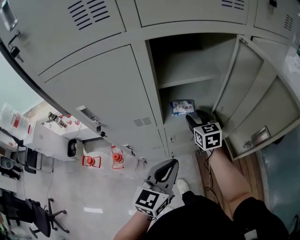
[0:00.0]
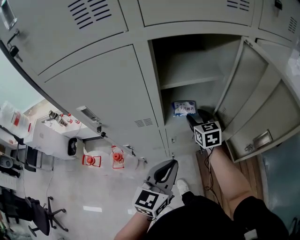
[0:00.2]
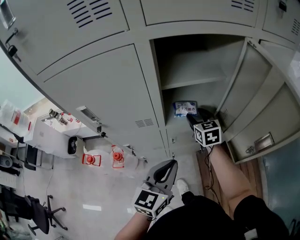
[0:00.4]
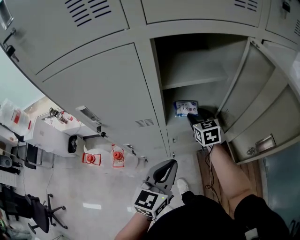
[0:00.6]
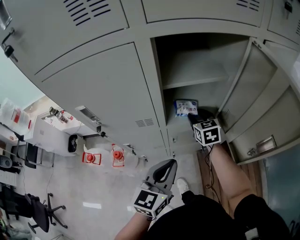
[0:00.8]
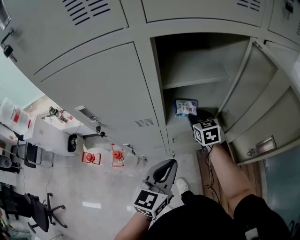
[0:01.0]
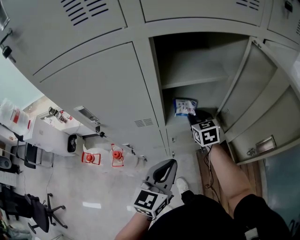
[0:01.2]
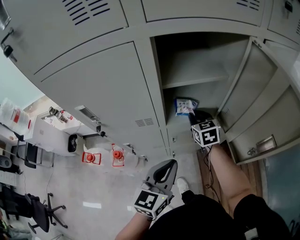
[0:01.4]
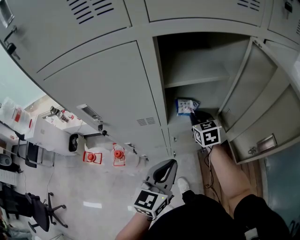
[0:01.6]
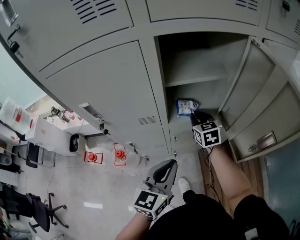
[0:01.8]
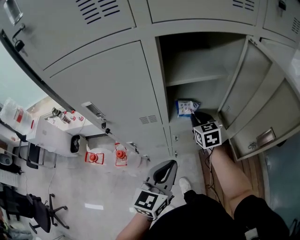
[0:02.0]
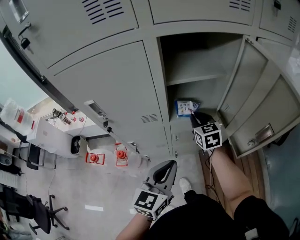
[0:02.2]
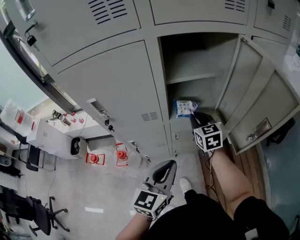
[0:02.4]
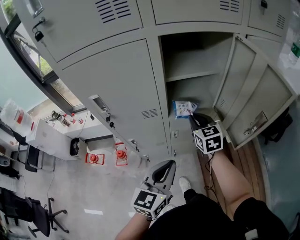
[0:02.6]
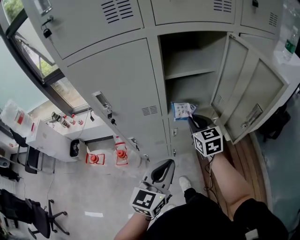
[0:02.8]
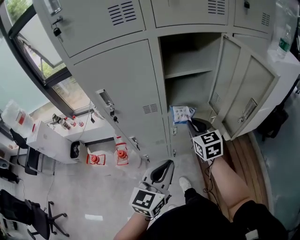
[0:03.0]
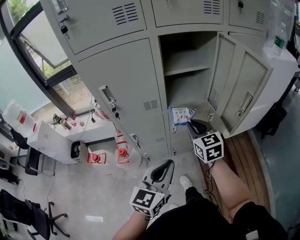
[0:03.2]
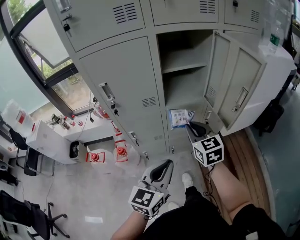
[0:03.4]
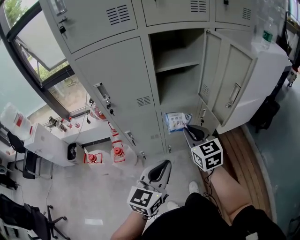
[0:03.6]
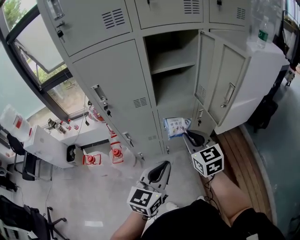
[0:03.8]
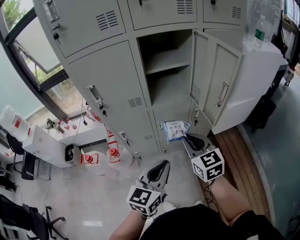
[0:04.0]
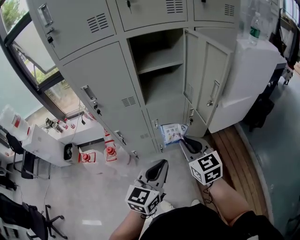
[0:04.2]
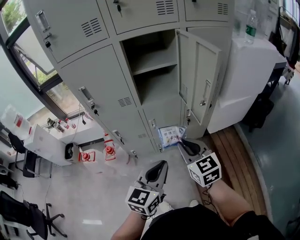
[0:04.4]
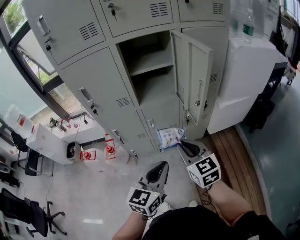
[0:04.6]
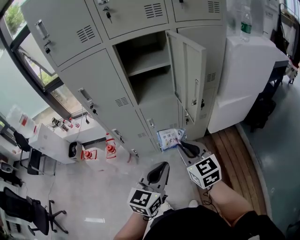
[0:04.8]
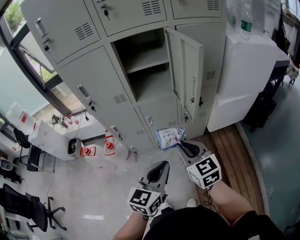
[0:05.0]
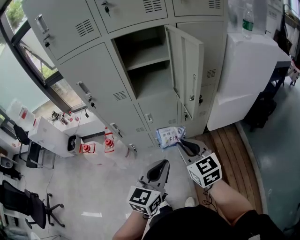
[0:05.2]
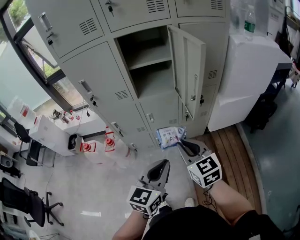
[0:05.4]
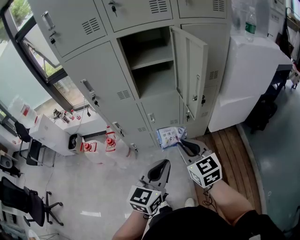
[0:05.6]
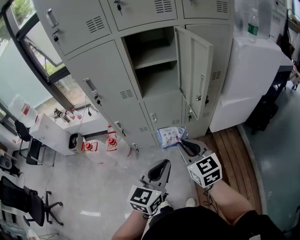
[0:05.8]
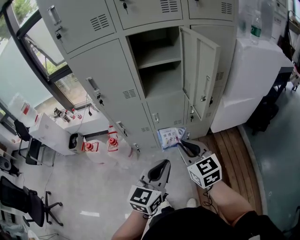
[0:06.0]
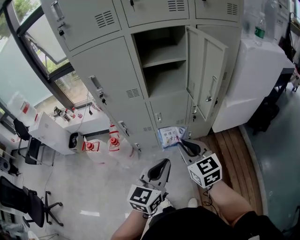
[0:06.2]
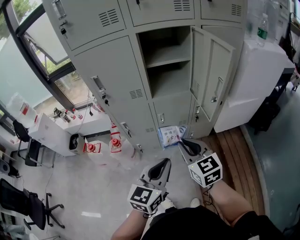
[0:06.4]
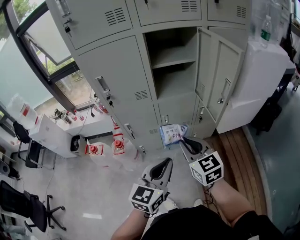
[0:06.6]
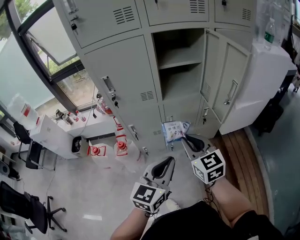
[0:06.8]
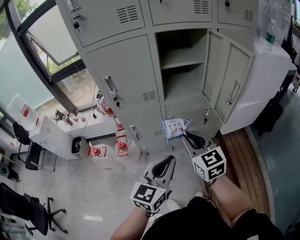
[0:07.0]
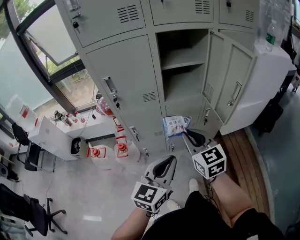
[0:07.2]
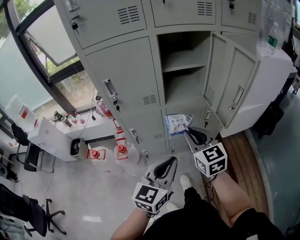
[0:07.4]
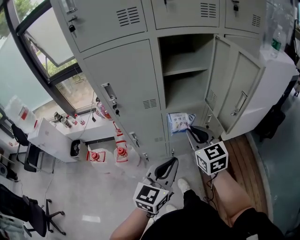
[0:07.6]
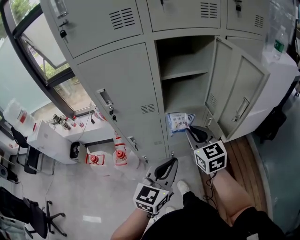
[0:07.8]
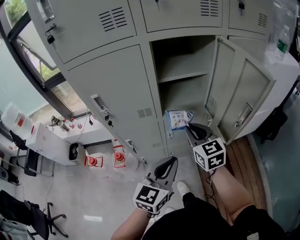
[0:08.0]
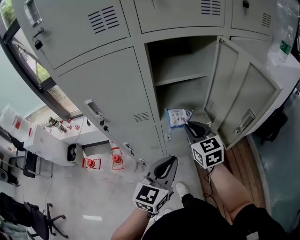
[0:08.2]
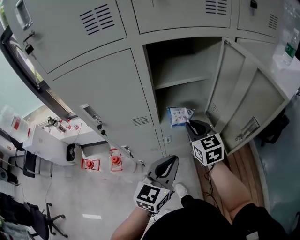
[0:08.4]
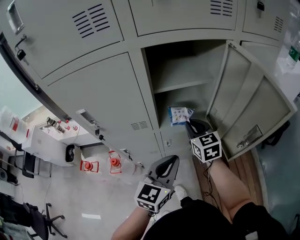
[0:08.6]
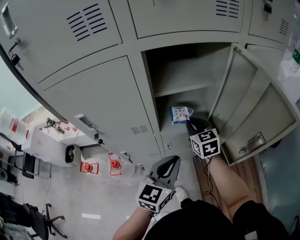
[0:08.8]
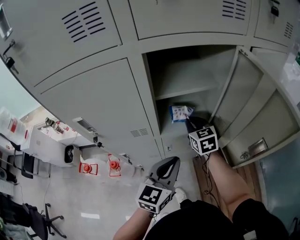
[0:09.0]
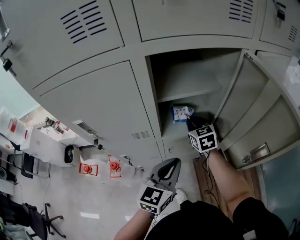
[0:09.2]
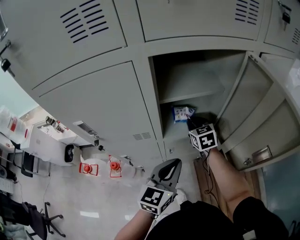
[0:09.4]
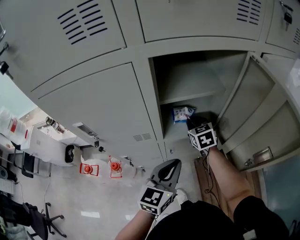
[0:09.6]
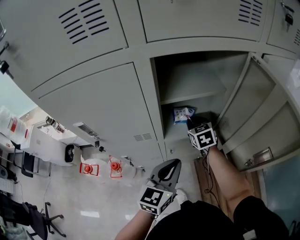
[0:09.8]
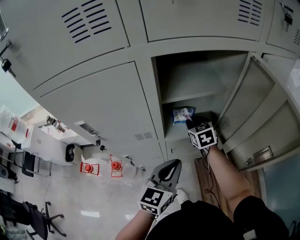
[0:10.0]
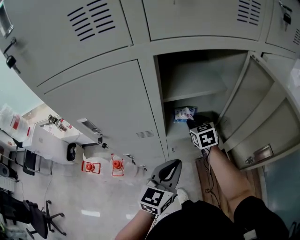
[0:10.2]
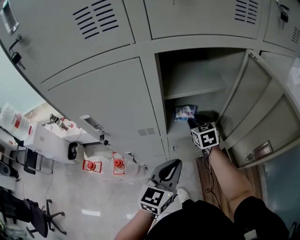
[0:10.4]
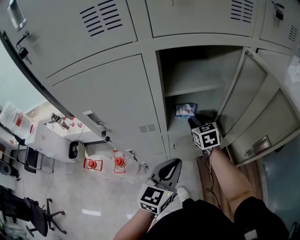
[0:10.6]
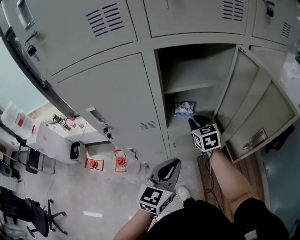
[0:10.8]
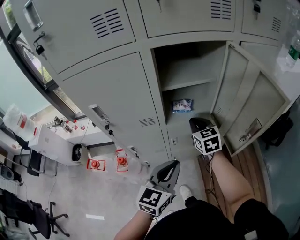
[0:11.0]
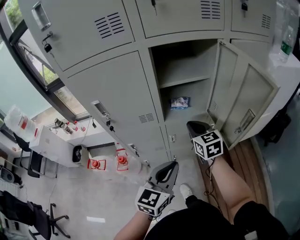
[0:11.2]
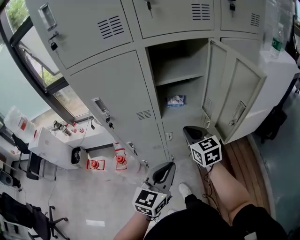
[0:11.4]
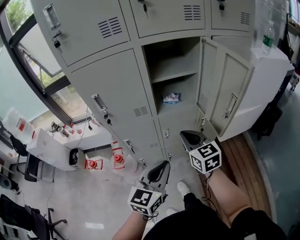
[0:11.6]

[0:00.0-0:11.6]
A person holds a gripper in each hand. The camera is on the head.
0:00.0 to 0:01.4: The right gripper closes its fingers.
0:01.4 to 0:02.8: The right gripper moves backward and upward, roughly 15 cm. Meanwhile the left gripper moves backward, some 10 cm.
0:02.8 to 0:04.4: The right gripper goes some 25 cm backward and to the right; the left gripper heads backward and to the right, covering approximately 15 cm.
0:04.4 to 0:05.8: The left gripper shifts by some 5 cm.
0:05.8 to 0:07.2: The grippers both shift to the left and forward by roughly 15 cm.
0:07.2 to 0:08.8: Both grippers move forward, some 25 cm.
0:08.8 to 0:10.2: The right gripper shifts approximately 5 cm forward, and opens its fingers.
0:10.2 to 0:11.6: The right gripper is displaced backward by about 30 cm, and closes; the left gripper is displaced backward by about 20 cm.

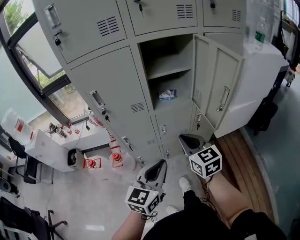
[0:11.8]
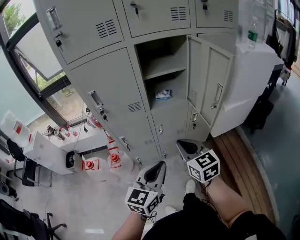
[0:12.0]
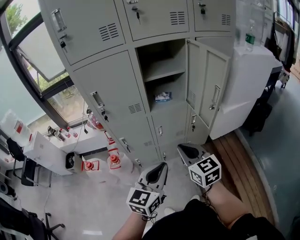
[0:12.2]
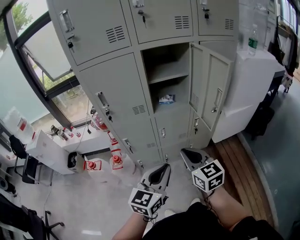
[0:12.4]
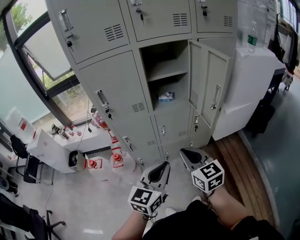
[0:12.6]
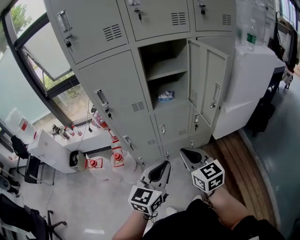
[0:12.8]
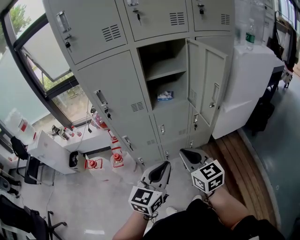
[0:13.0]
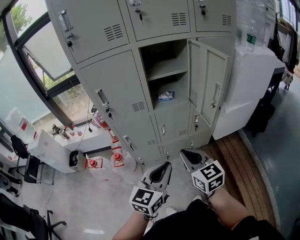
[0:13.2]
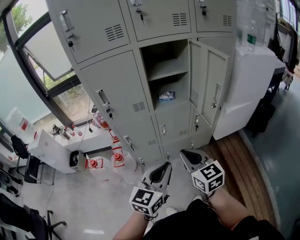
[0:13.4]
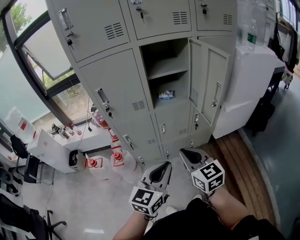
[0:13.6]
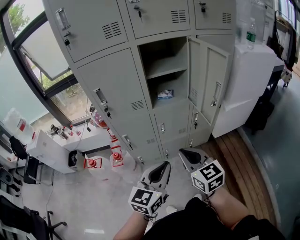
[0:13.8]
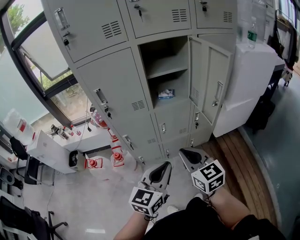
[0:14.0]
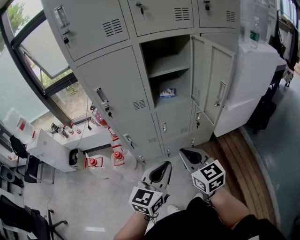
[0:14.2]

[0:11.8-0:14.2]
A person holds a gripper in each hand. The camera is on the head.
0:11.8 to 0:13.0: The right gripper heads backward, covering some 10 cm, while the left gripper shifts roughly 5 cm backward.
0:13.0 to 0:14.2: The grippers move only a little.

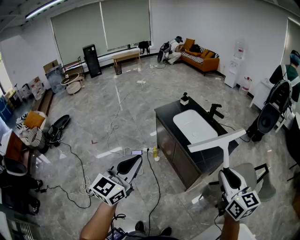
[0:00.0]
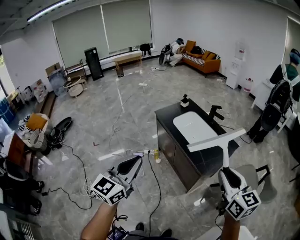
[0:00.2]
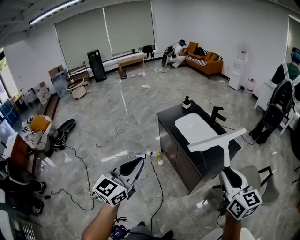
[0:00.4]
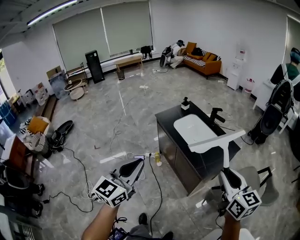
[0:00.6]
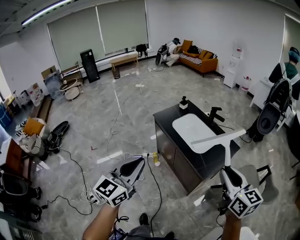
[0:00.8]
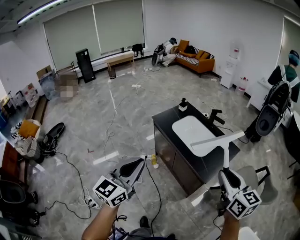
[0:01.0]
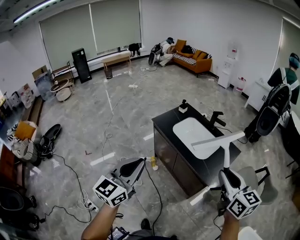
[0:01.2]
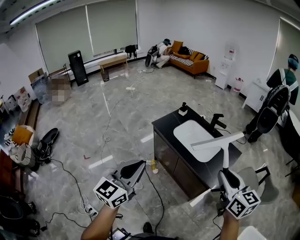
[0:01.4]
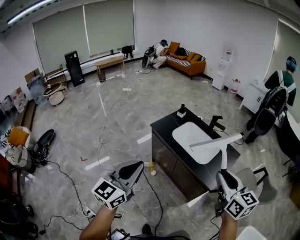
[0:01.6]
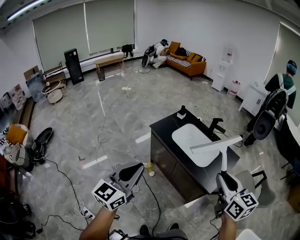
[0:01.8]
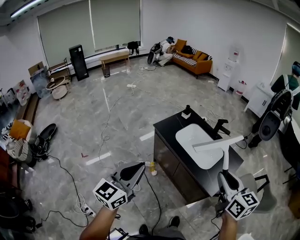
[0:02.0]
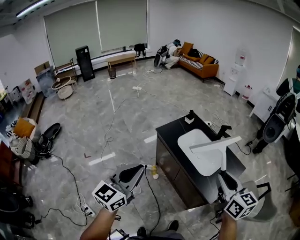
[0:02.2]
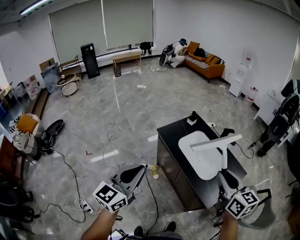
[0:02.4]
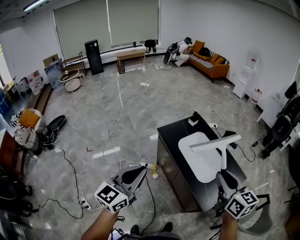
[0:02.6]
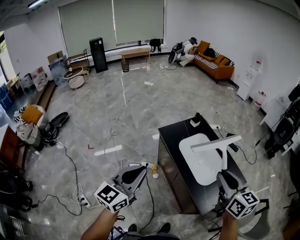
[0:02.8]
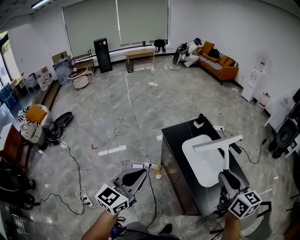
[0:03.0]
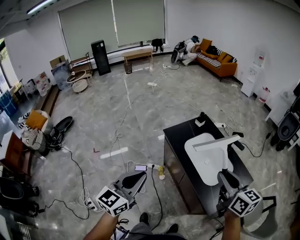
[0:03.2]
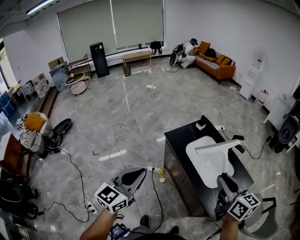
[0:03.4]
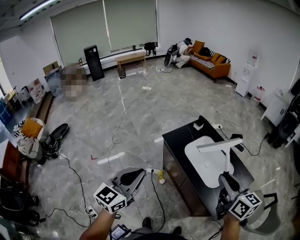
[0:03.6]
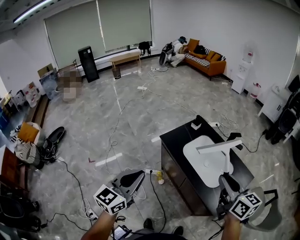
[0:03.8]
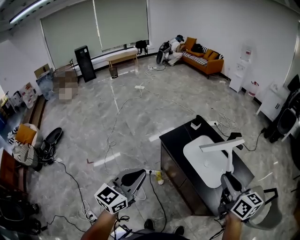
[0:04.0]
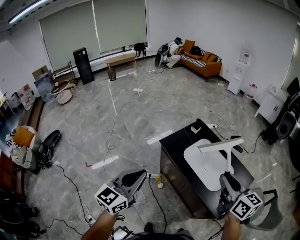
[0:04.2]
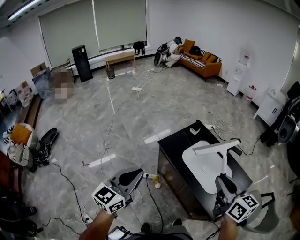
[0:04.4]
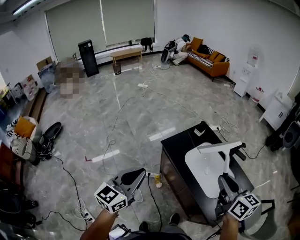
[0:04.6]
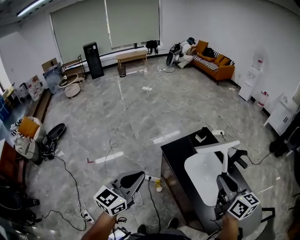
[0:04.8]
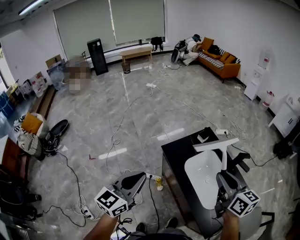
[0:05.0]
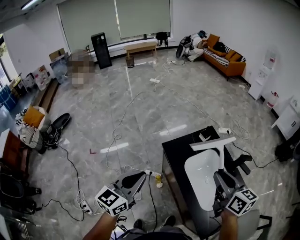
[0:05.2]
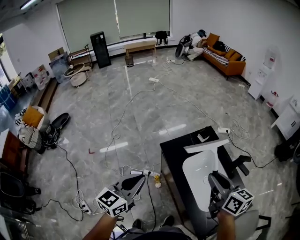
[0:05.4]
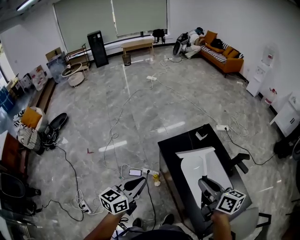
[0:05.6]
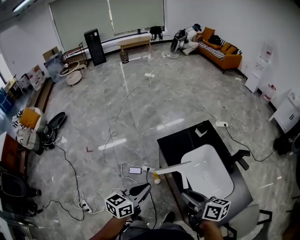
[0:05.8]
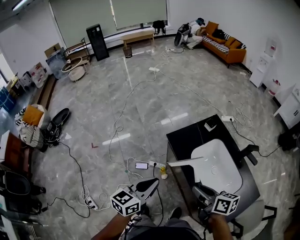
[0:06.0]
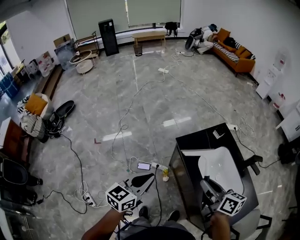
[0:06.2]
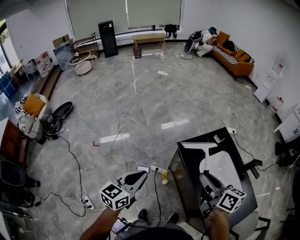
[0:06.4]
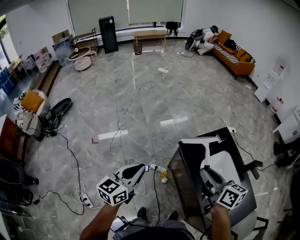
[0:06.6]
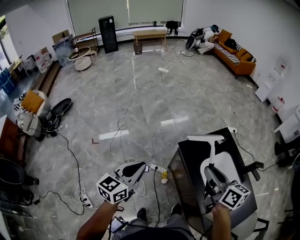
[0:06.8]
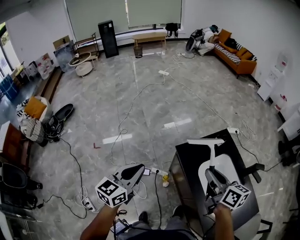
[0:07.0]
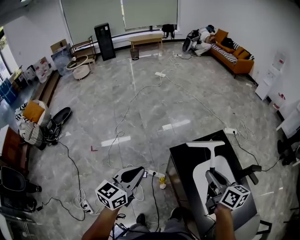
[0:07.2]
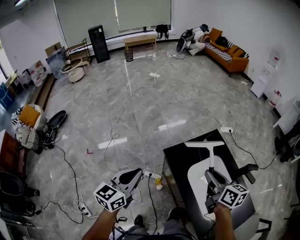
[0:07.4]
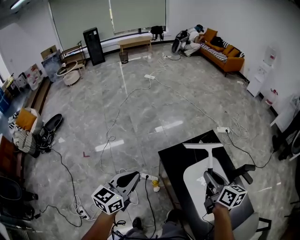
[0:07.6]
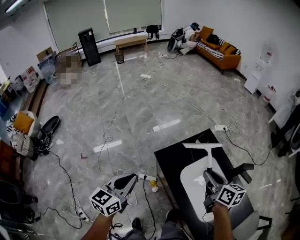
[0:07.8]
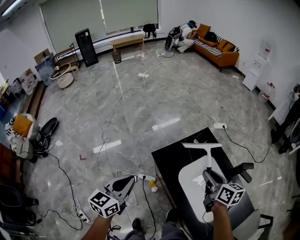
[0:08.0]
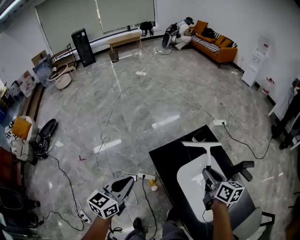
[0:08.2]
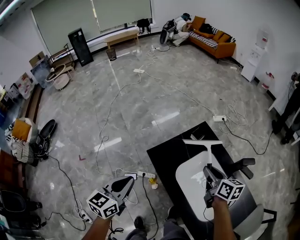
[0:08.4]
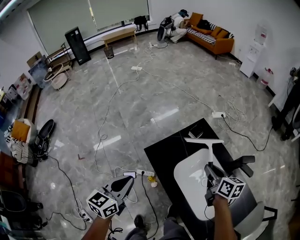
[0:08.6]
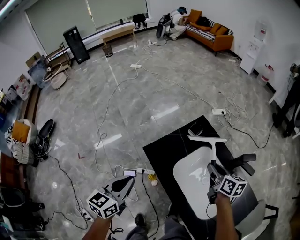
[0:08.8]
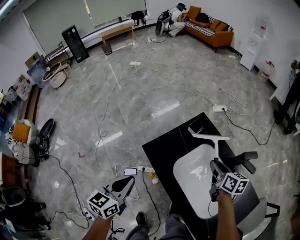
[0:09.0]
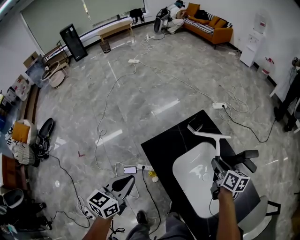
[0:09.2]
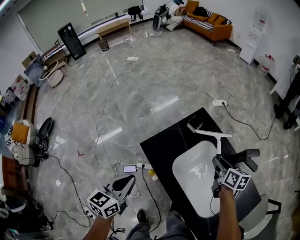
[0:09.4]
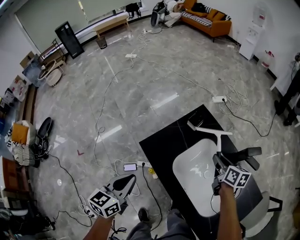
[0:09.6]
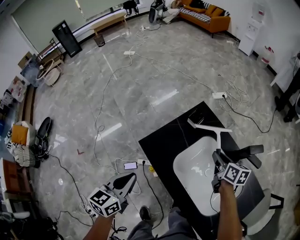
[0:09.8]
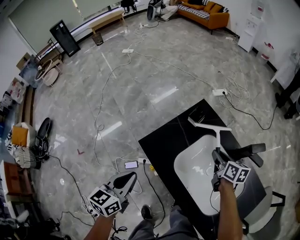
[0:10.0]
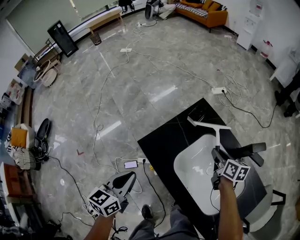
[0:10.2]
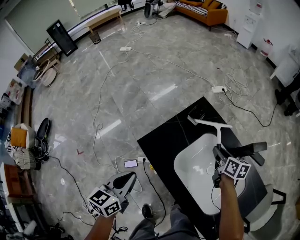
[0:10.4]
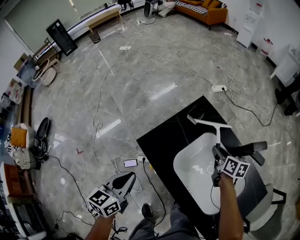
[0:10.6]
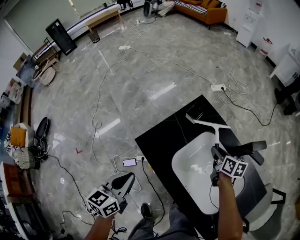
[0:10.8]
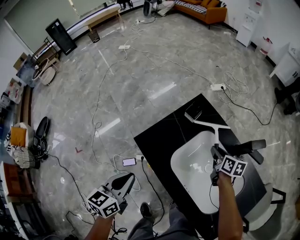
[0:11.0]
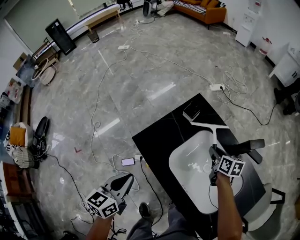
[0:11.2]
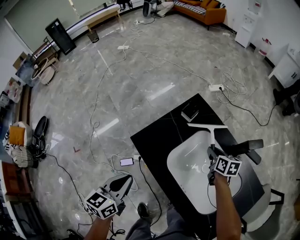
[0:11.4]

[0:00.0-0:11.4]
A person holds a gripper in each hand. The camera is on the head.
0:00.0 to 0:01.4: Both grippers move forward and to the left, approximately 20 cm.
0:01.4 to 0:02.8: The left gripper moves forward, approximately 15 cm, while the right gripper heads forward, covering some 20 cm.
0:02.8 to 0:04.2: The left gripper moves forward and to the left, roughly 15 cm. The right gripper moves to the left and forward, roughly 10 cm.
0:04.2 to 0:05.6: The right gripper moves forward and downward, approximately 20 cm, and changes its angle by approximately 30 degrees. The left gripper moves downward, forward and to the right, approximately 20 cm, and turns by about 30 degrees.
0:05.6 to 0:07.2: The right gripper moves forward, roughly 10 cm, and moves some 20 cm to the left and comes back, while the left gripper moves forward and to the left, about 15 cm.
0:07.2 to 0:08.6: The left gripper heads to the right, downward and forward, covering some 15 cm; the right gripper shifts roughly 25 cm to the right, downward and forward.
0:08.6 to 0:10.0: The left gripper travels downward by some 10 cm, while the right gripper is displaced downward, forward and to the right by approximately 15 cm.
0:10.0 to 0:11.4: The right gripper is displaced downward by about 10 cm.
